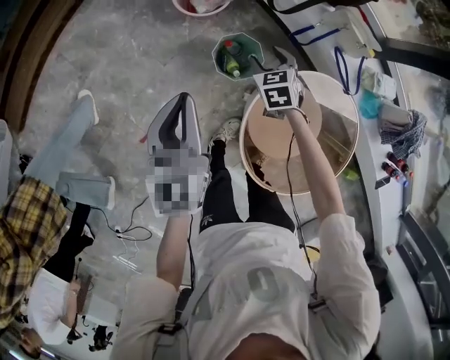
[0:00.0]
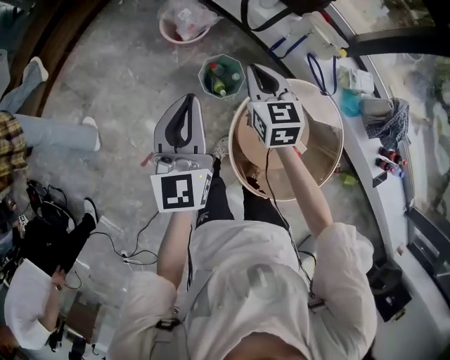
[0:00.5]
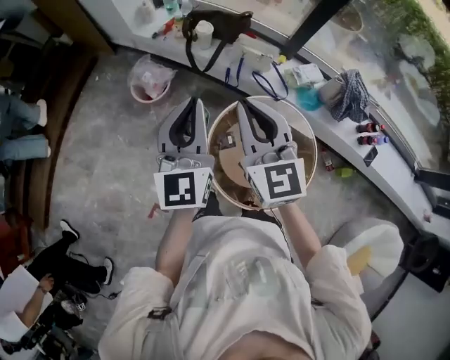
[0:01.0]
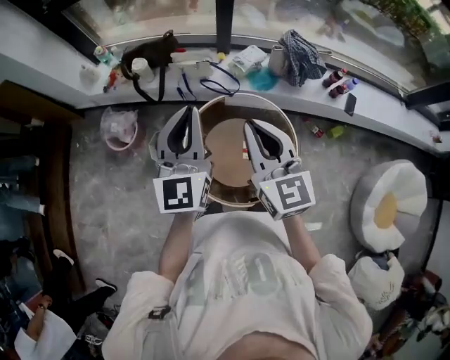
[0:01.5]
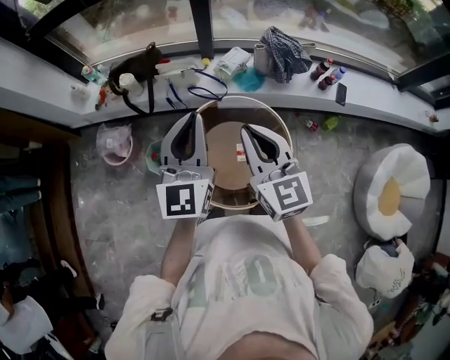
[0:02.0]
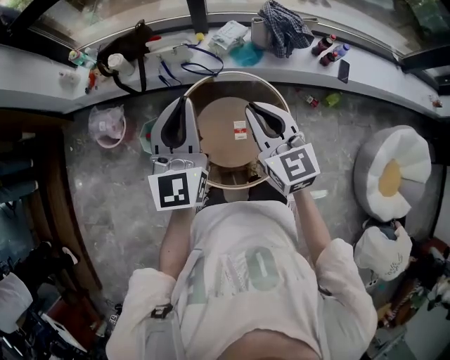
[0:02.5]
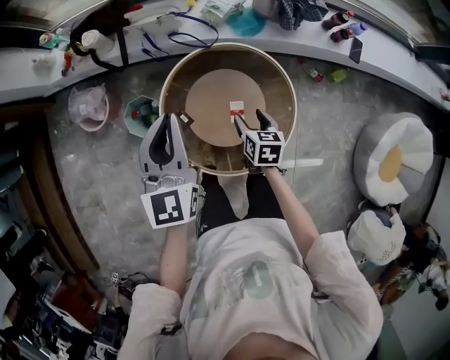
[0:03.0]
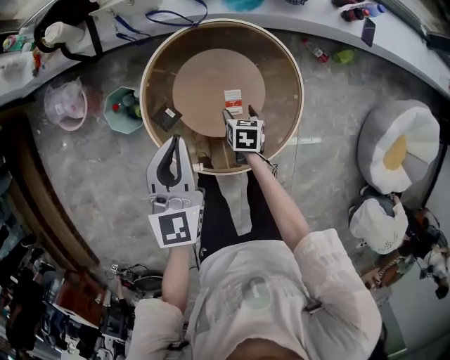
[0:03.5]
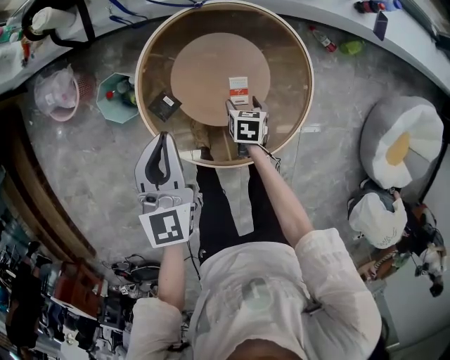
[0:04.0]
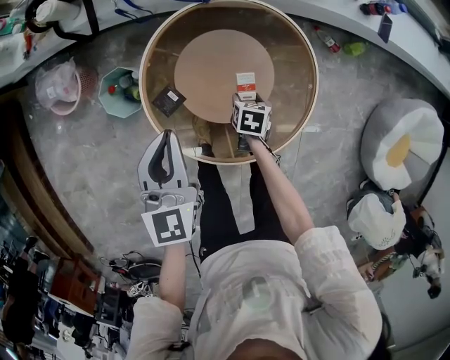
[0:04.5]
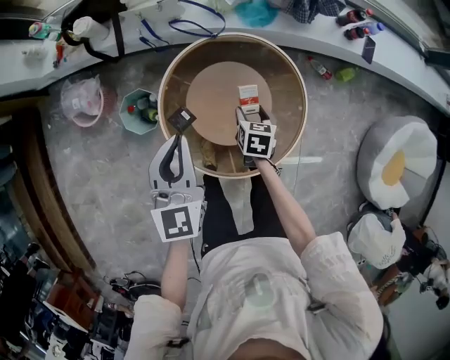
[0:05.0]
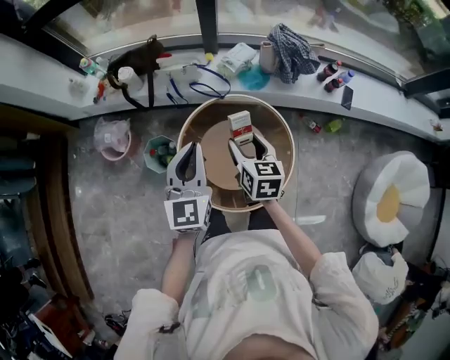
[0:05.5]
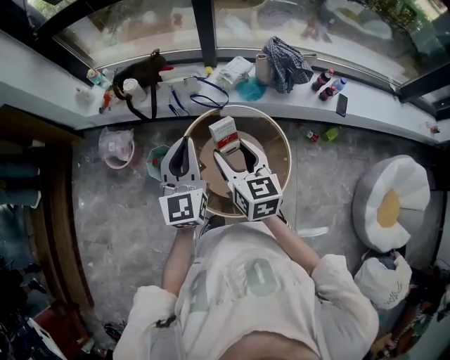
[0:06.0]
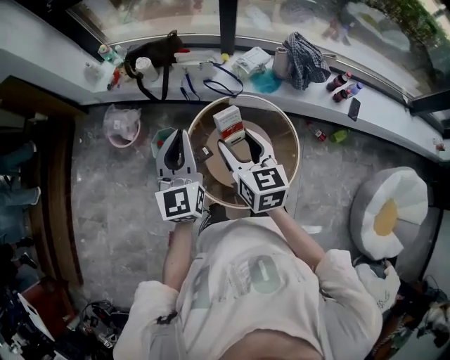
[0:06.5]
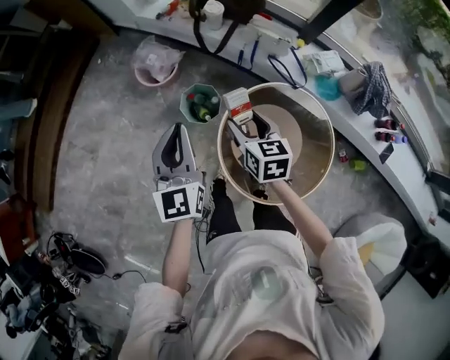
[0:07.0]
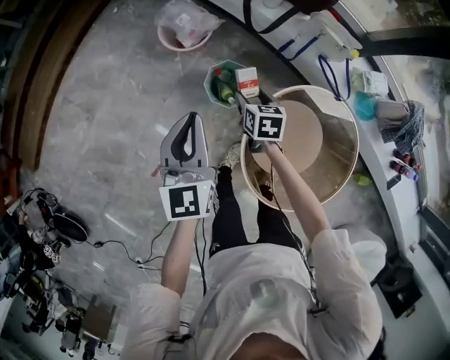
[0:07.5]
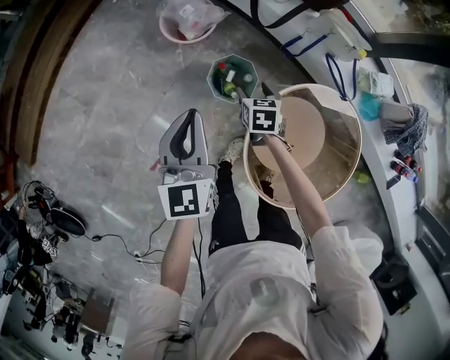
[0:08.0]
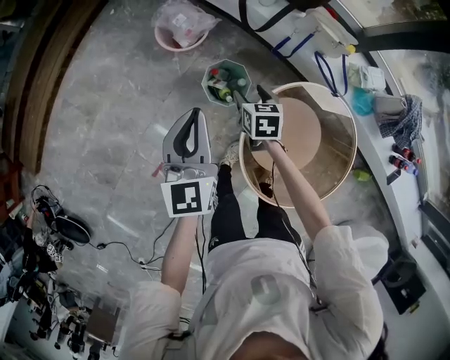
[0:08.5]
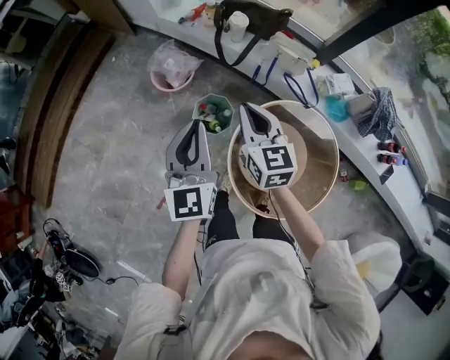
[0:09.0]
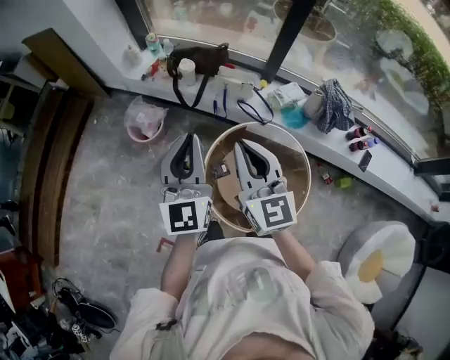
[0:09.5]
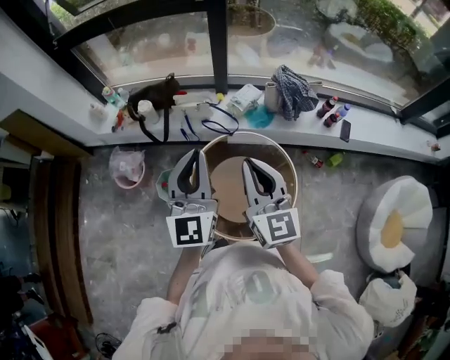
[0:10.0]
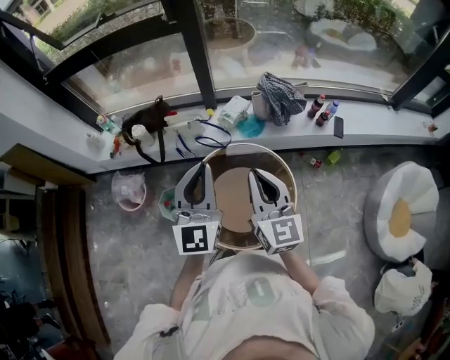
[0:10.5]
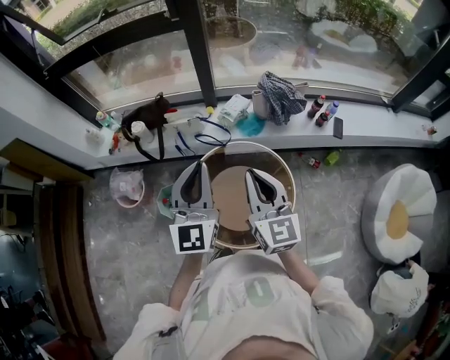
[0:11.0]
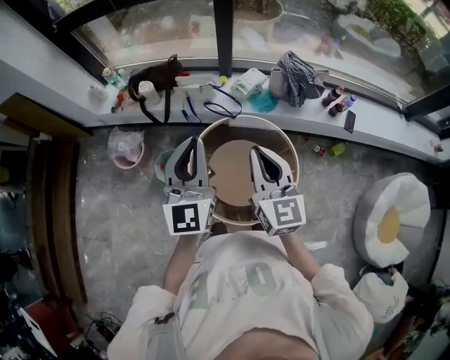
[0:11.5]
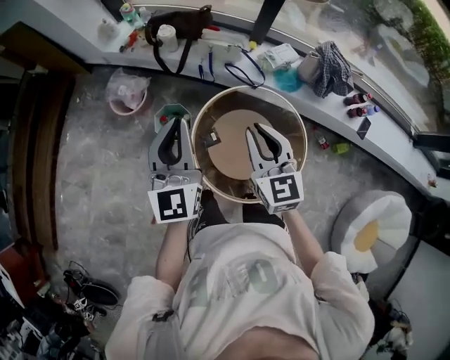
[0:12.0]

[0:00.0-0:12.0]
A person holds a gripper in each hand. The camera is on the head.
0:00.0 to 0:02.0: The pair of grippers is taken roughly 40 cm. The right gripper moves upward, roughly 40 cm, tips its fingers upward by about 40 degrees, and closes, while the left gripper rotates some 50 degrees.
0:02.0 to 0:04.0: The left gripper heads downward, covering approximately 30 cm, and turns by some 30 degrees. Meanwhile the right gripper goes about 60 cm downward, tips its fingers downward by approximately 60 degrees, and opens its fingers.
0:04.0 to 0:06.0: The left gripper moves upward, roughly 25 cm, and changes its angle by some 20 degrees, while the right gripper moves upward, some 50 cm, and tilts its fingers about 50 degrees upward.
0:06.0 to 0:08.0: The right gripper travels downward by some 40 cm, and points its fingers roughly 40 degrees further downward, while the left gripper shifts by some 40 cm, and changes its angle by some 40 degrees.
0:08.0 to 0:10.0: The left gripper changes place by approximately 50 cm, and changes its angle by some 50 degrees. Meanwhile the right gripper shifts some 50 cm upward, tilts its fingers roughly 60 degrees upward, and closes.
0:10.0 to 0:12.0: The left gripper travels to the left and downward by approximately 15 cm; the right gripper shifts approximately 15 cm downward and to the left, and changes its angle by about 20 degrees.

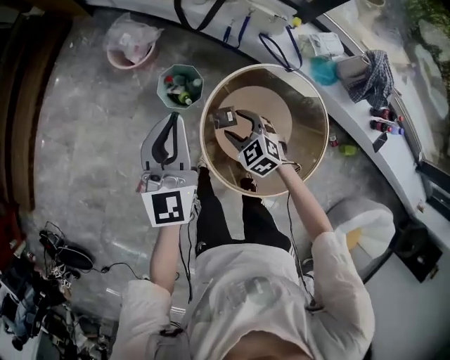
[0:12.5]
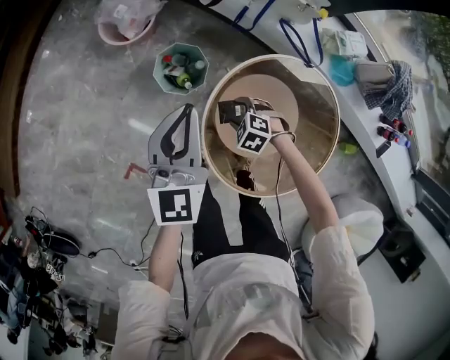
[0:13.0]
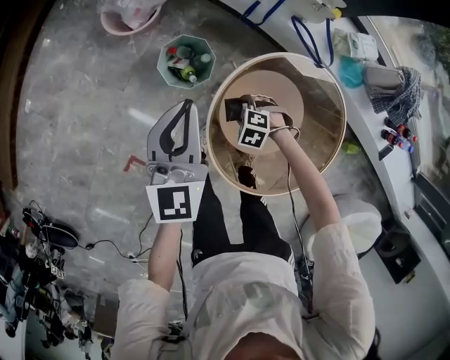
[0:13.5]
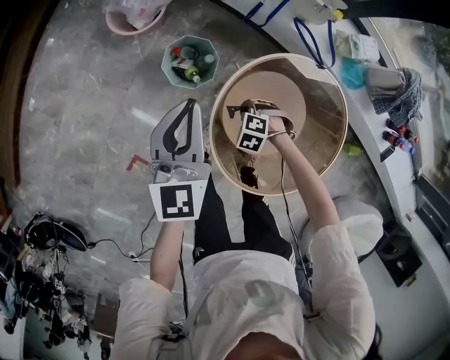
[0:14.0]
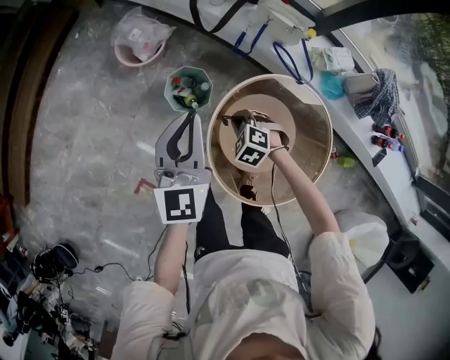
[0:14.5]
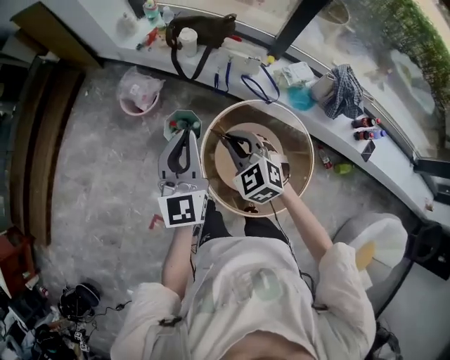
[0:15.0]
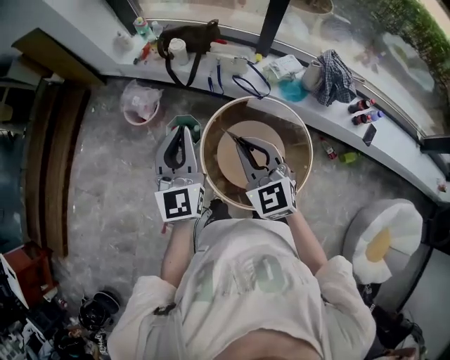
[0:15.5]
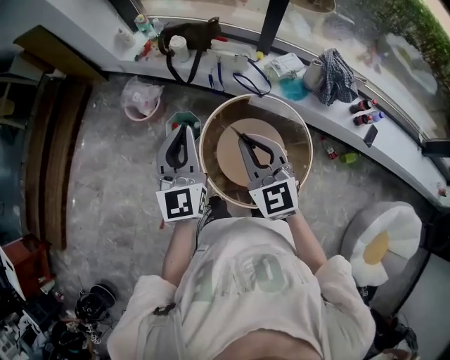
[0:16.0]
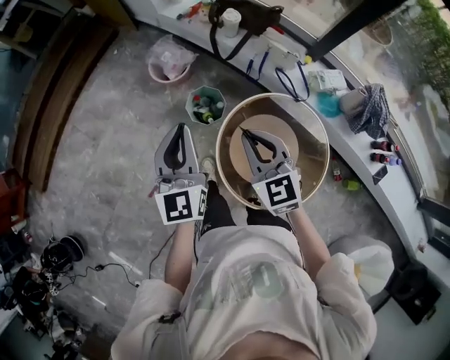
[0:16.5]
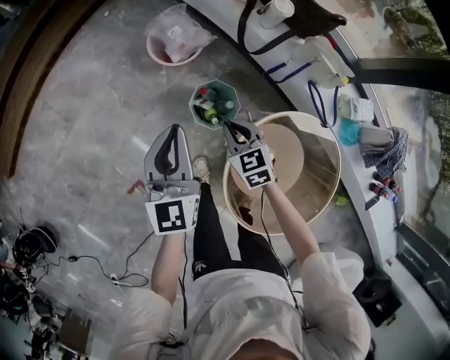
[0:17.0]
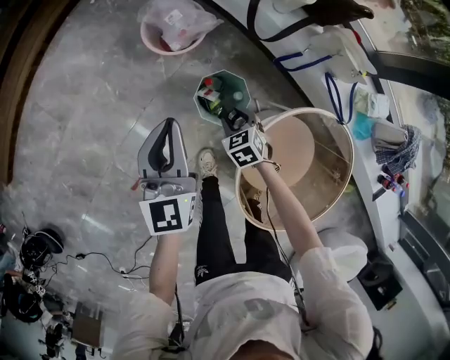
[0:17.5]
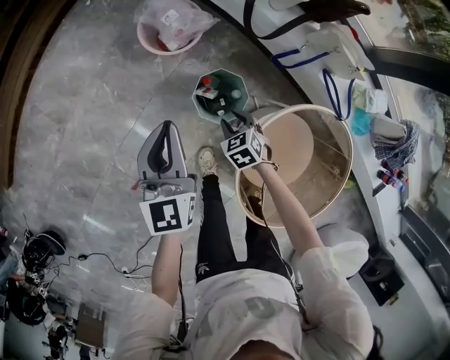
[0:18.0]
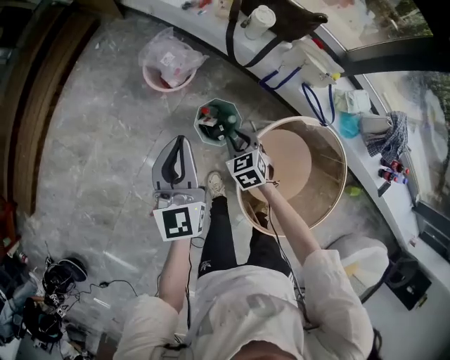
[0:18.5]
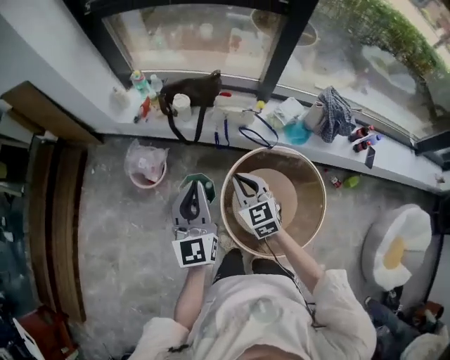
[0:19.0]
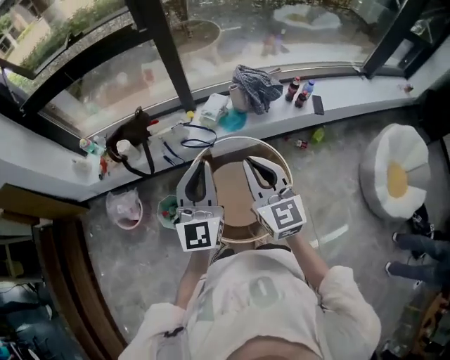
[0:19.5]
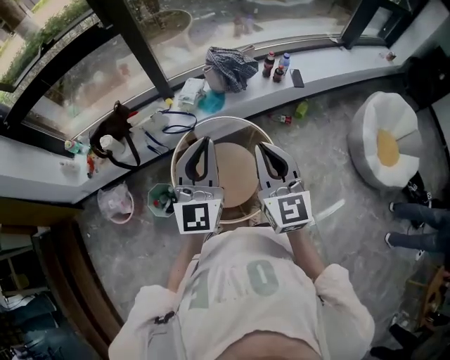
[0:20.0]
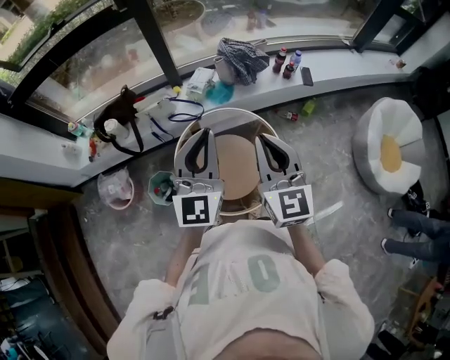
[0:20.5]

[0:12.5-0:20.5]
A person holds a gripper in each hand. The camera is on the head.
0:12.5 to 0:14.5: The left gripper moves roughly 10 cm downward and comes back. Meanwhile the right gripper goes downward and returns, some 20 cm each way, turns by roughly 20 degrees, and closes its fingers.
0:14.5 to 0:16.5: The left gripper heads upward and backward, covering about 15 cm. Meanwhile the right gripper moves upward, roughly 35 cm, and angles its fingers upward, by approximately 50 degrees.
0:16.5 to 0:18.5: The right gripper travels downward and forward by roughly 40 cm, and tips its fingers downward by roughly 30 degrees; the left gripper travels forward, downward and to the left by about 25 cm.
0:18.5 to 0:20.5: The pair of grippers is taken some 50 cm. The right gripper is displaced upward by about 50 cm, and tips its fingers upward by roughly 50 degrees. The left gripper swivels about 60 degrees.

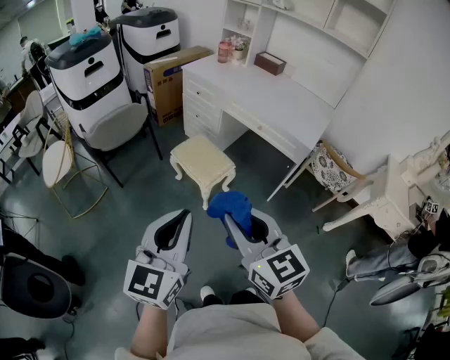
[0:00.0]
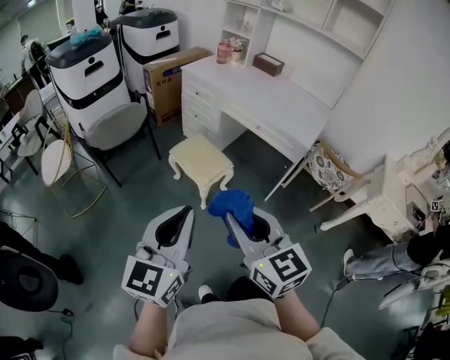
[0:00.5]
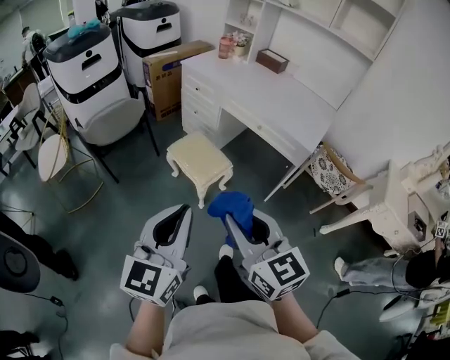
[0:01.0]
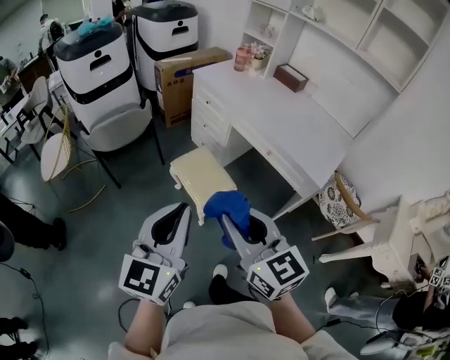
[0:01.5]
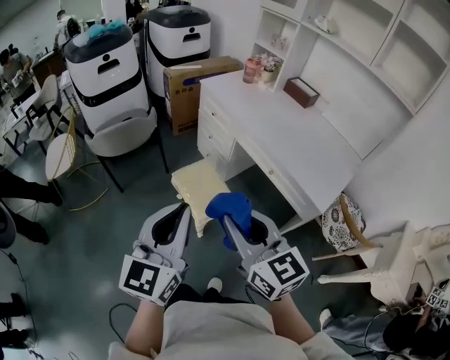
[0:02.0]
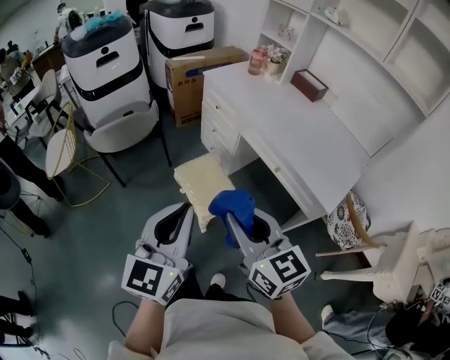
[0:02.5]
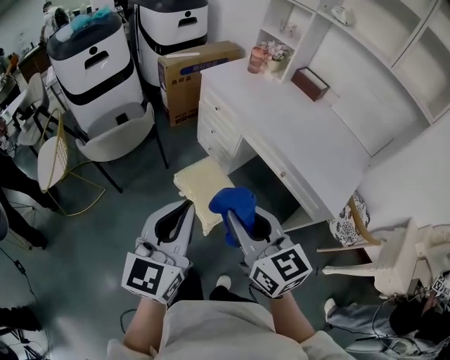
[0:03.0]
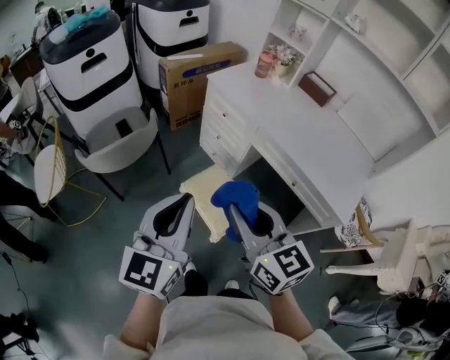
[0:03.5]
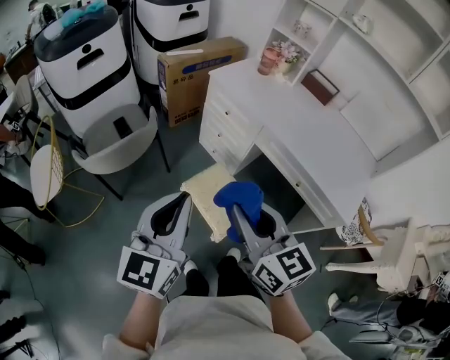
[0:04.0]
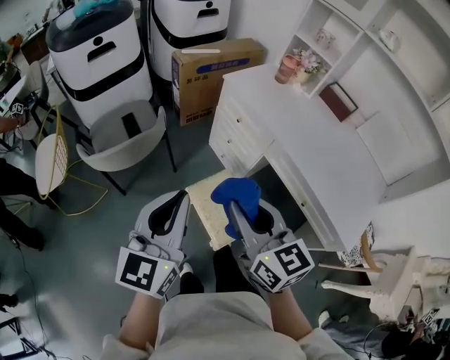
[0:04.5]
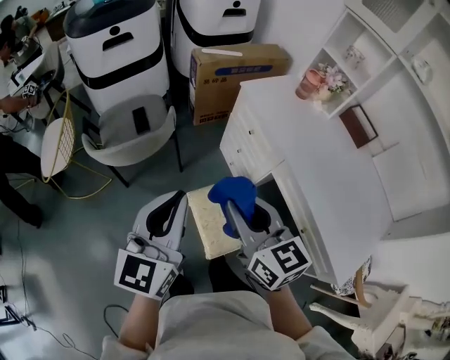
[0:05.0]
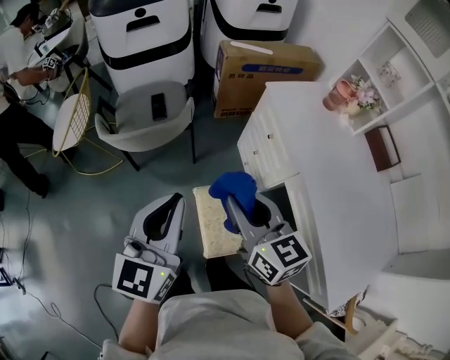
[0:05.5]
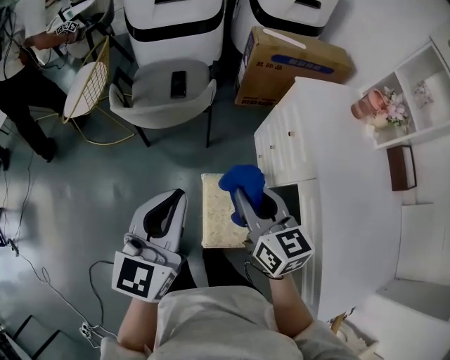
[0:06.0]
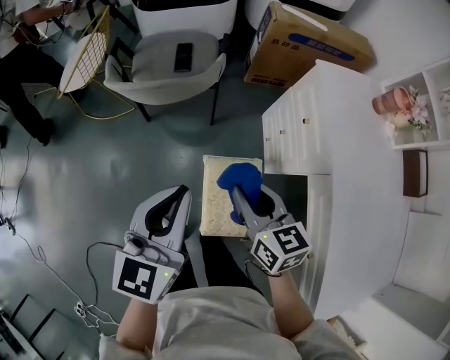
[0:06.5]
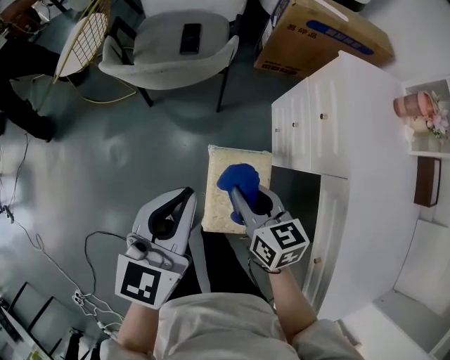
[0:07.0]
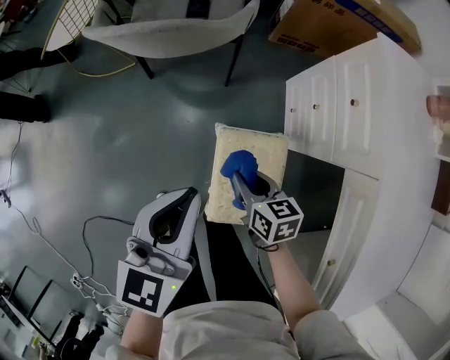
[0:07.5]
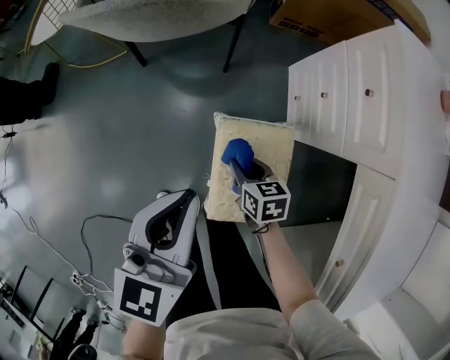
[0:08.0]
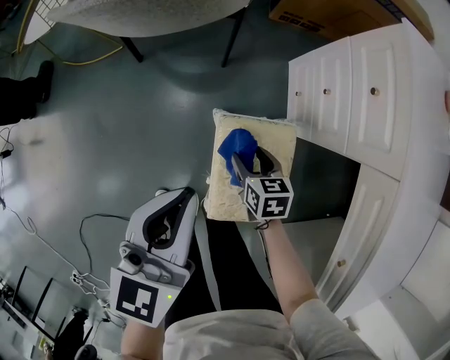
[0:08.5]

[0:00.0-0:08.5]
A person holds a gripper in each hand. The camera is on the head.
0:00.0 to 0:02.0: Both grippers move forward and to the right, roughly 25 cm.
0:02.0 to 0:04.0: Both grippers move forward and to the left, some 25 cm.
0:04.0 to 0:06.5: The left gripper changes place by some 20 cm, and swivels roughly 40 degrees. Meanwhile the right gripper shifts by some 30 cm, and rotates some 40 degrees.
0:06.5 to 0:08.5: The right gripper heads downward, covering roughly 35 cm, swivels some 30 degrees, and opens its fingers, while the left gripper moves downward, approximately 20 cm.
